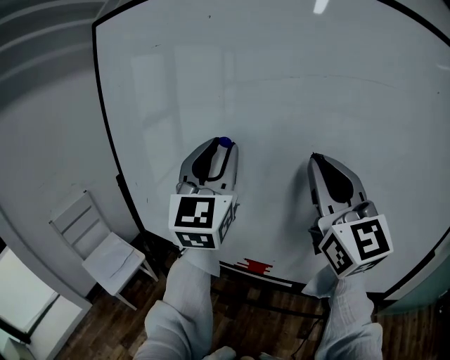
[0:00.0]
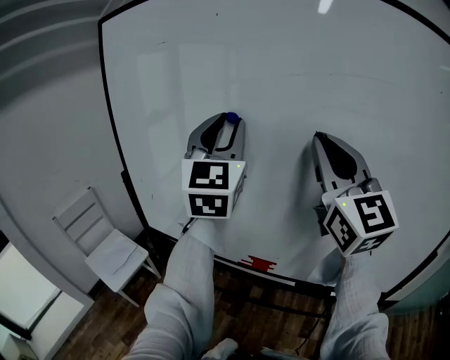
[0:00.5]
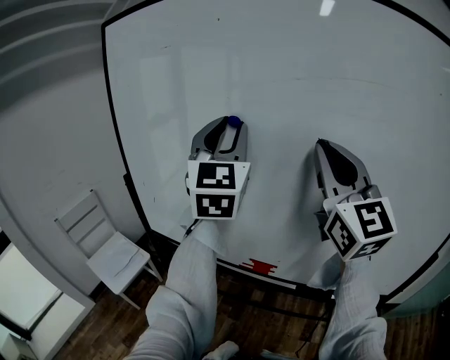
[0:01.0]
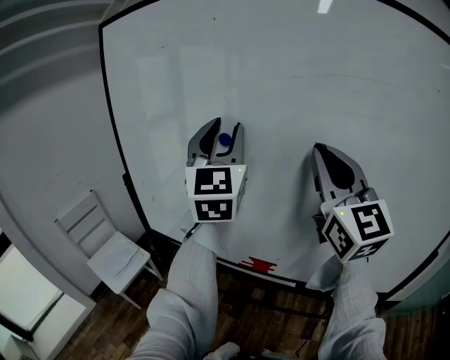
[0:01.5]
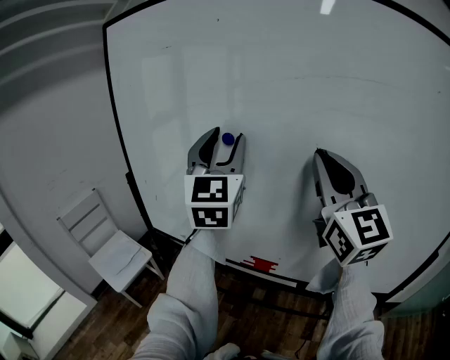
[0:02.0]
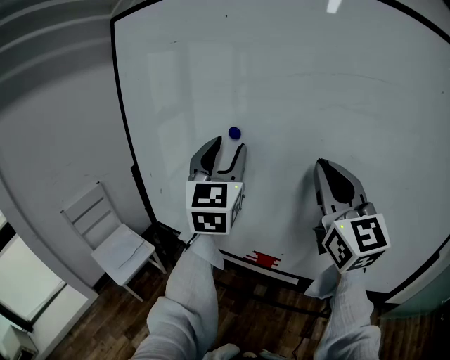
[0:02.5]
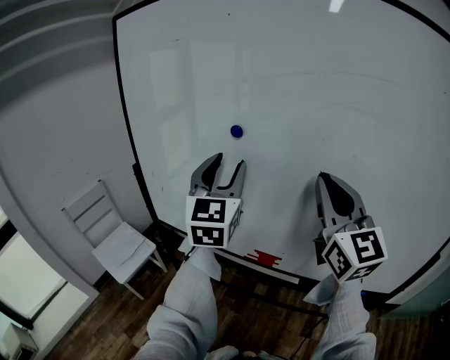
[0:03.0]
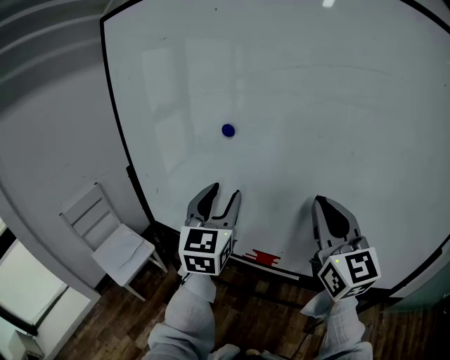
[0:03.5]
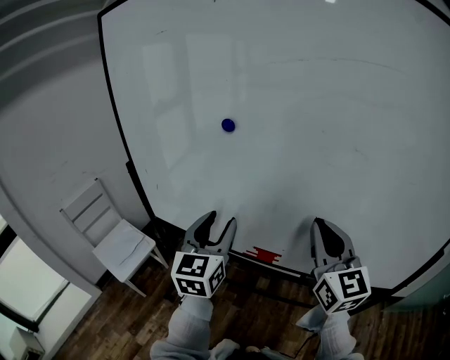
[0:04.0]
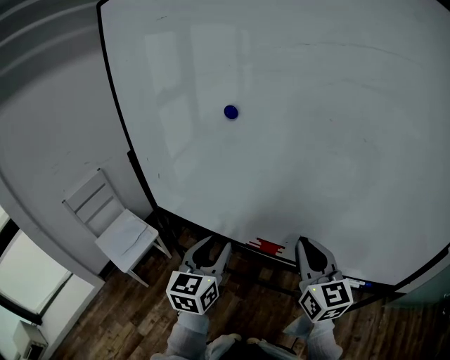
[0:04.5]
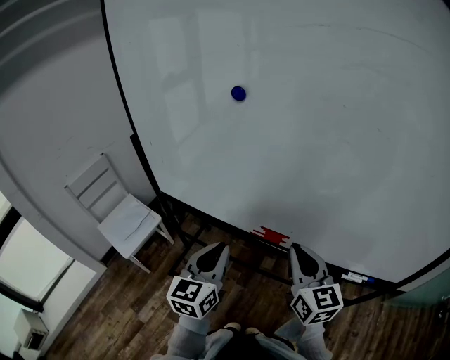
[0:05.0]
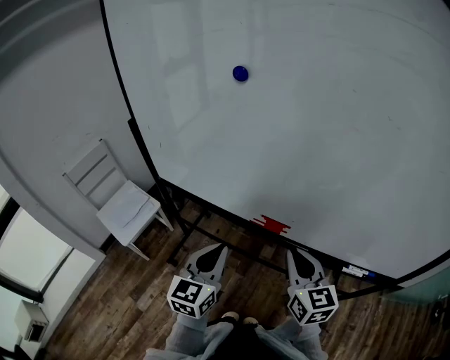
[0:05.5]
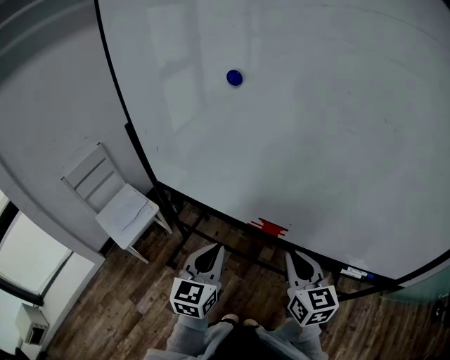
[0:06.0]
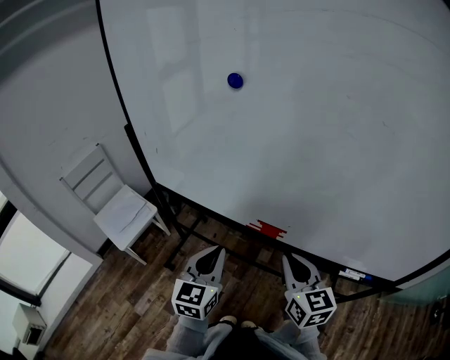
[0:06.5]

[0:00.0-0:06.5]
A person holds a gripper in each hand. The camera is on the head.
0:00.0 to 0:02.0: The grippers make only small movements.
0:02.0 to 0:04.5: The two grippers go roughly 30 cm downward. The left gripper turns by some 30 degrees. The right gripper changes its angle by about 30 degrees.
0:04.5 to 0:06.5: Both grippers move downward, approximately 10 cm. The left gripper closes up.

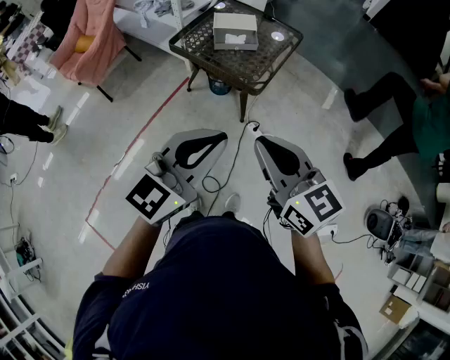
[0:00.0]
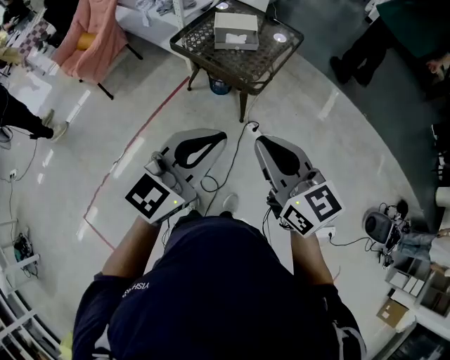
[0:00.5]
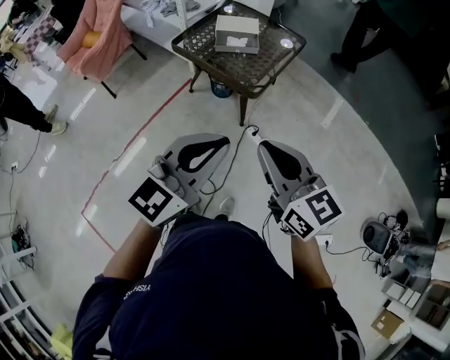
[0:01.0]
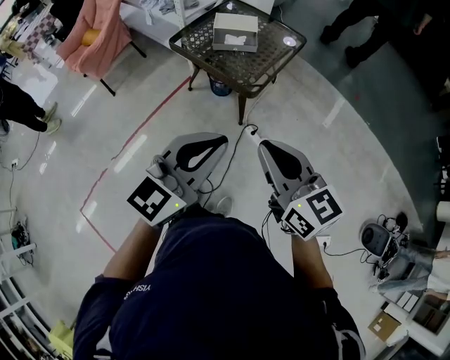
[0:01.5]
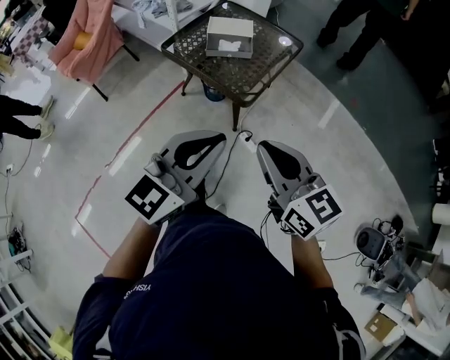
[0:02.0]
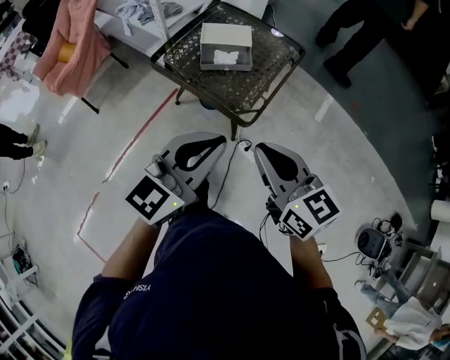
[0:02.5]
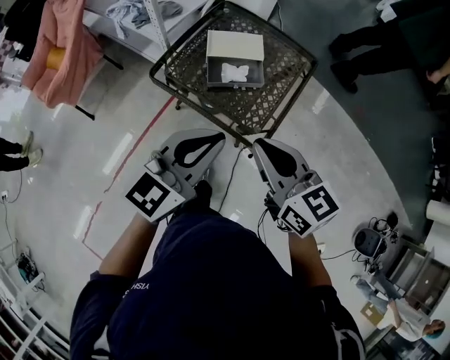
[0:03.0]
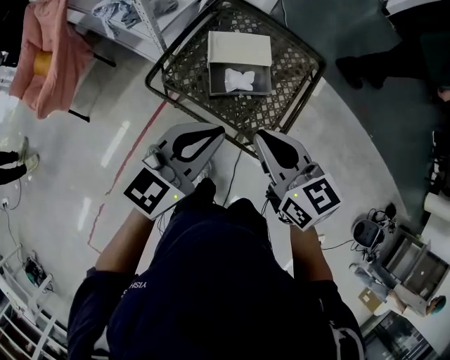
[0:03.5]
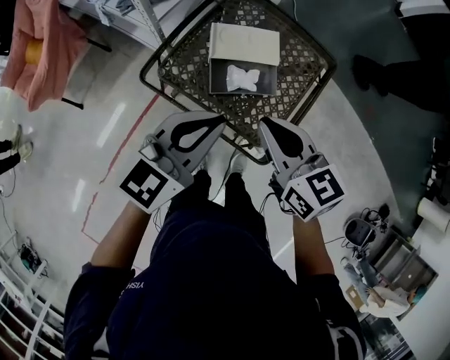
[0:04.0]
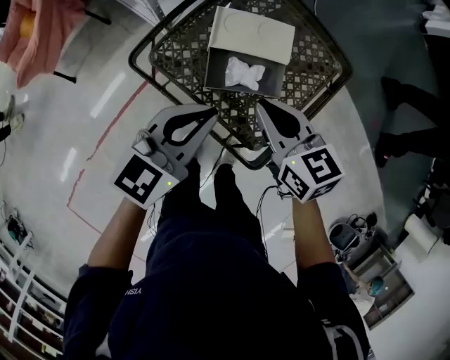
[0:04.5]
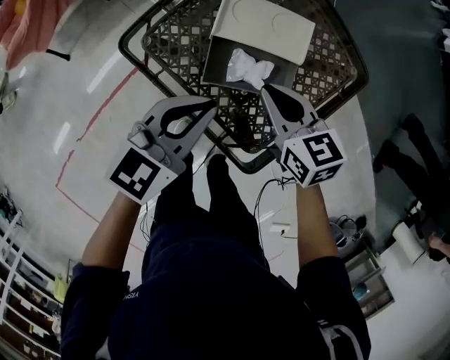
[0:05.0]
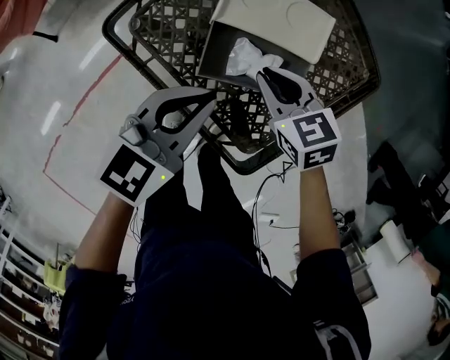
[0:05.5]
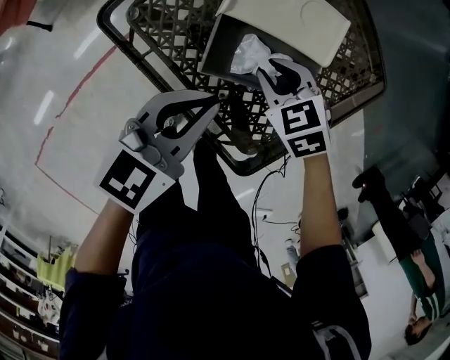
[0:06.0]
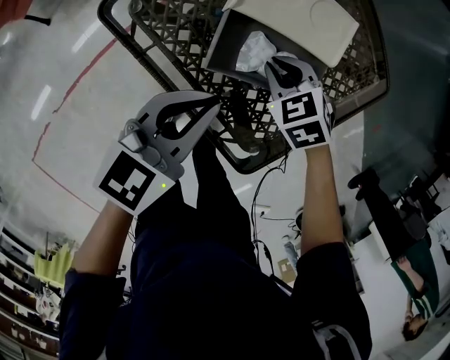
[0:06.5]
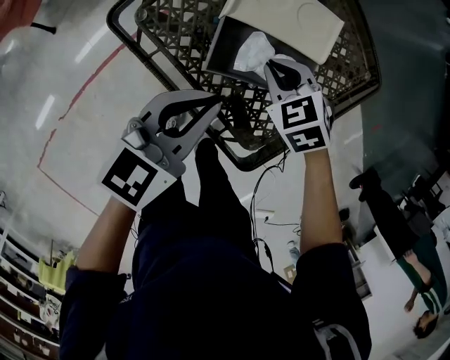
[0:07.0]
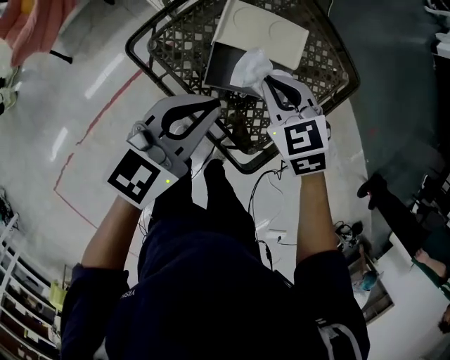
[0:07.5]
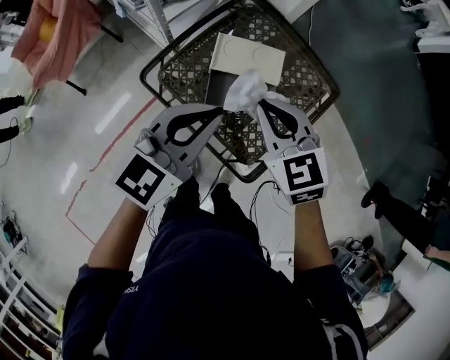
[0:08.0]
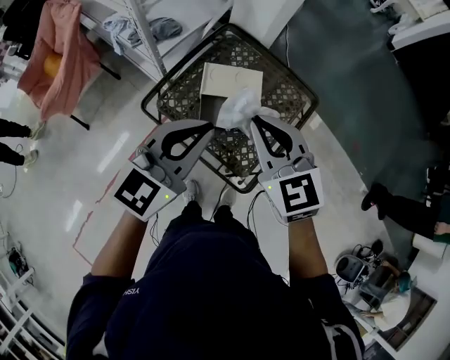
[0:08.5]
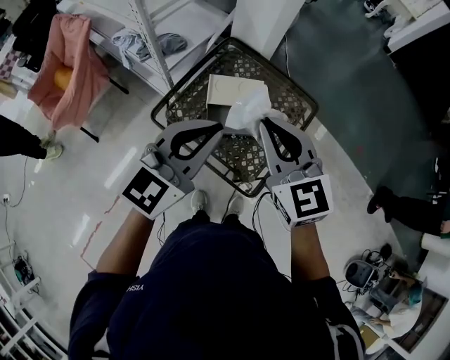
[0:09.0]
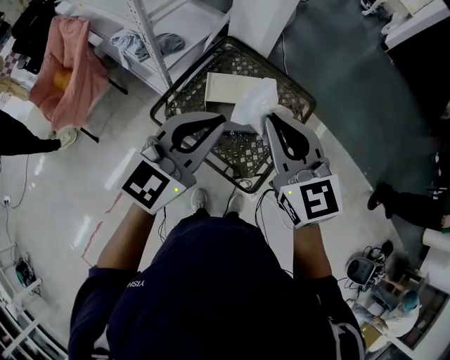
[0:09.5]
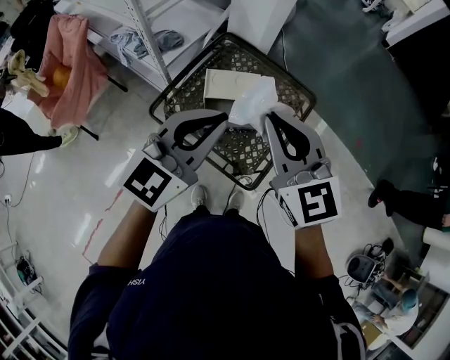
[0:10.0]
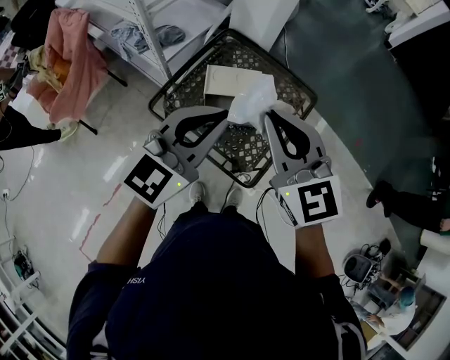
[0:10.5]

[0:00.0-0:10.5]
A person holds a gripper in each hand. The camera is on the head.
0:00.0 to 0:02.0: Both grippers travel together forward and to the right, about 10 cm.
0:02.0 to 0:04.0: Both grippers are carried forward, roughly 50 cm.
0:04.0 to 0:06.5: Both grippers travel together downward, roughly 35 cm. The right gripper angles its fingers downward, by about 40 degrees. The left gripper rotates some 20 degrees.
0:06.5 to 0:08.5: Both grippers travel together upward, some 40 cm. The right gripper points its fingers approximately 40 degrees further upward; the left gripper swivels roughly 30 degrees.
0:08.5 to 0:10.5: The right gripper heads upward, covering roughly 10 cm; the left gripper moves upward, about 5 cm.

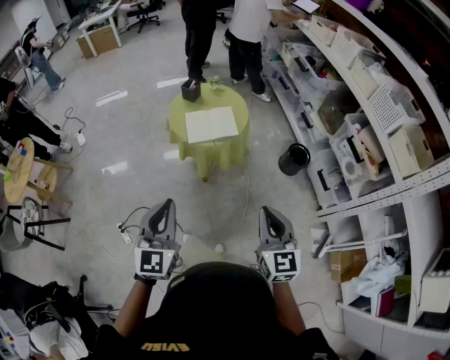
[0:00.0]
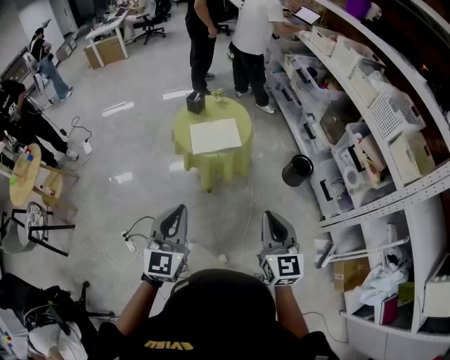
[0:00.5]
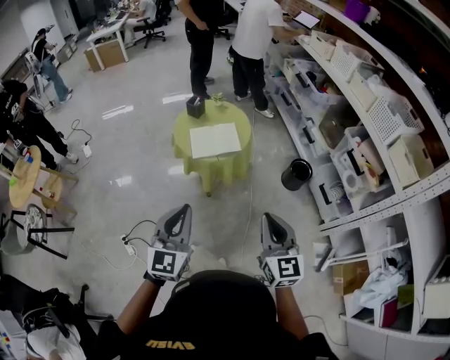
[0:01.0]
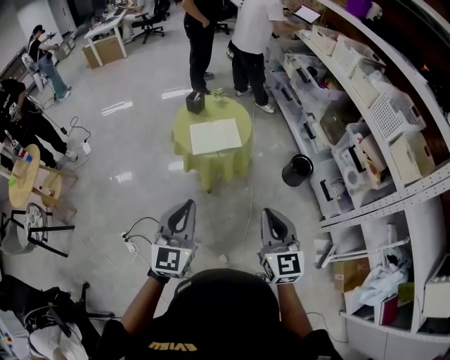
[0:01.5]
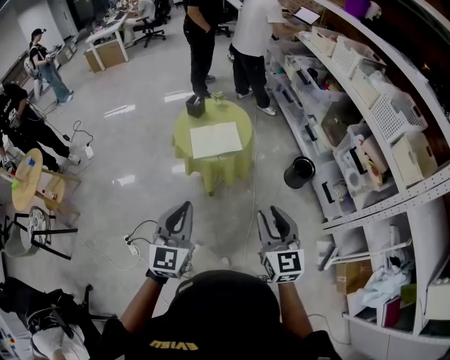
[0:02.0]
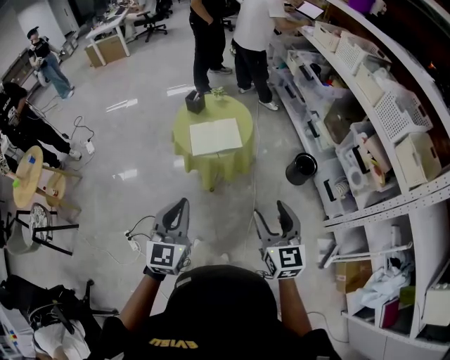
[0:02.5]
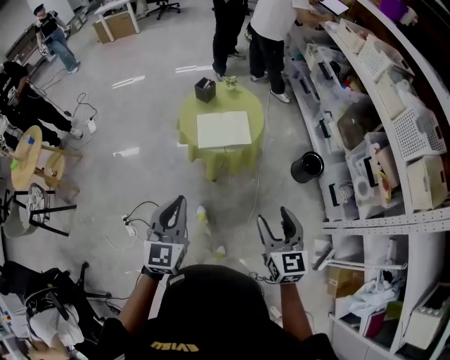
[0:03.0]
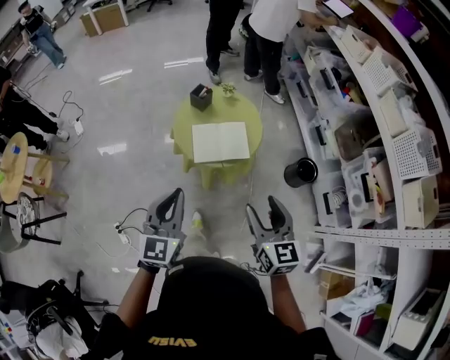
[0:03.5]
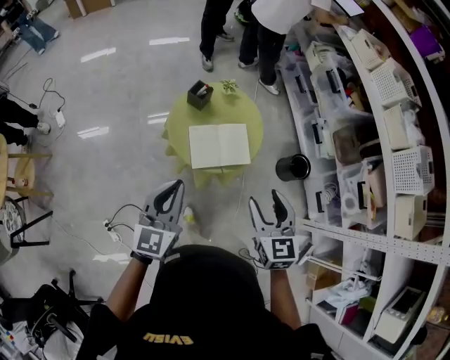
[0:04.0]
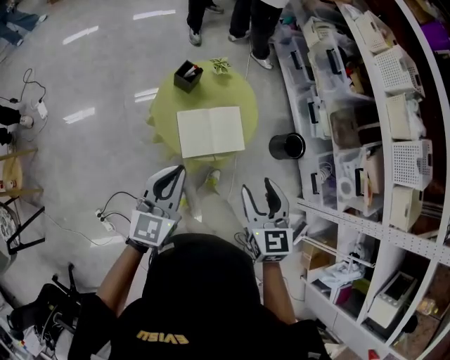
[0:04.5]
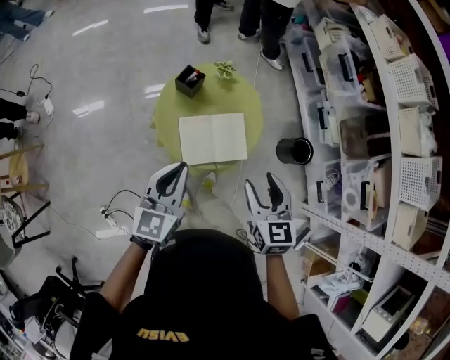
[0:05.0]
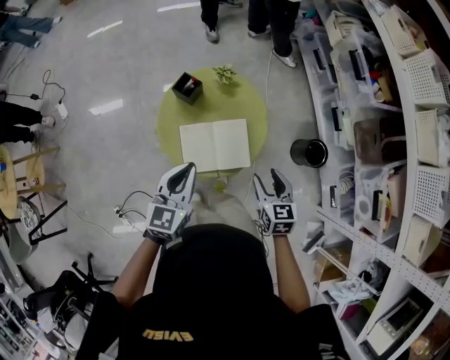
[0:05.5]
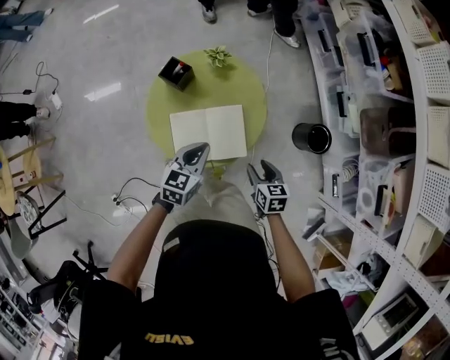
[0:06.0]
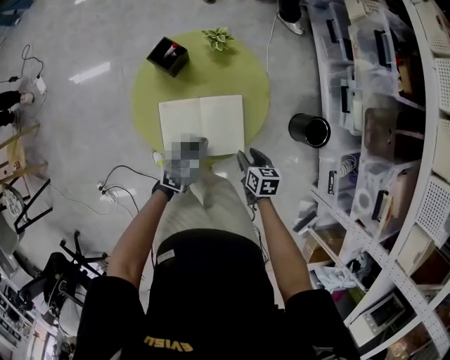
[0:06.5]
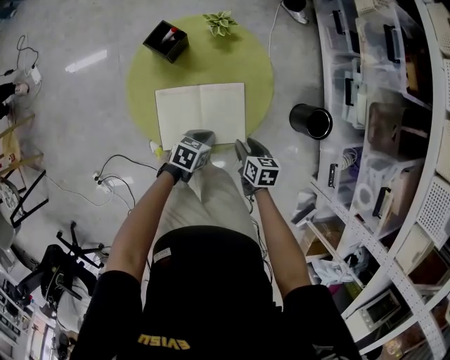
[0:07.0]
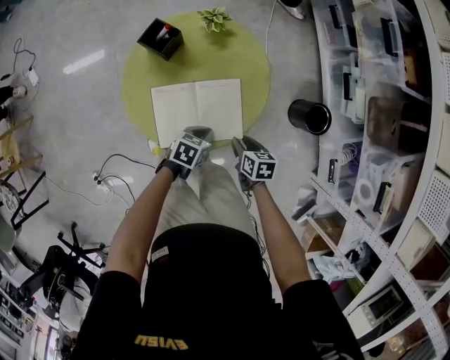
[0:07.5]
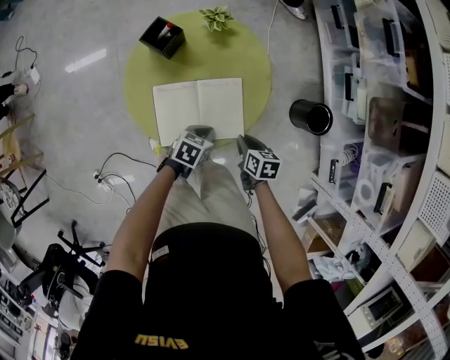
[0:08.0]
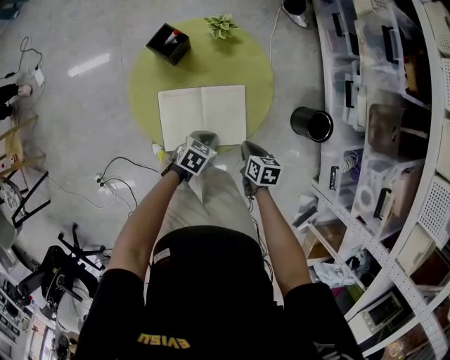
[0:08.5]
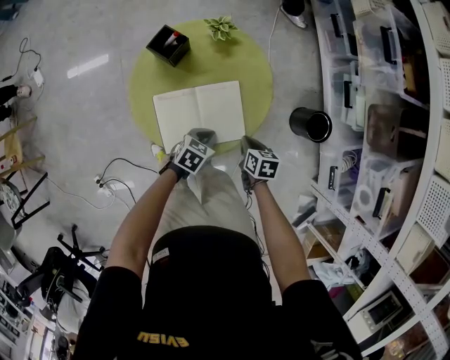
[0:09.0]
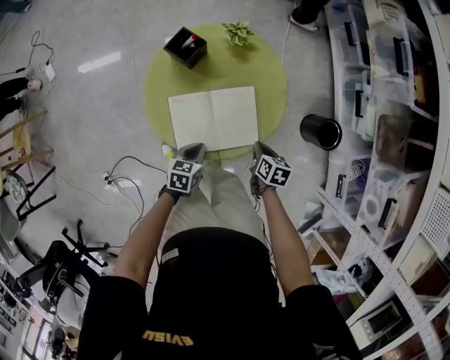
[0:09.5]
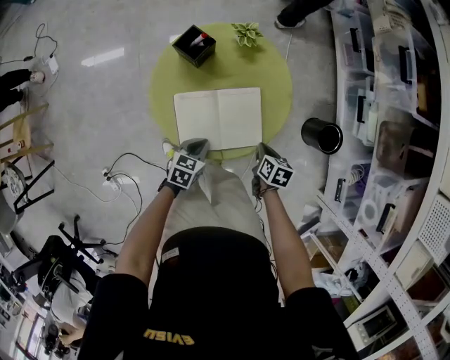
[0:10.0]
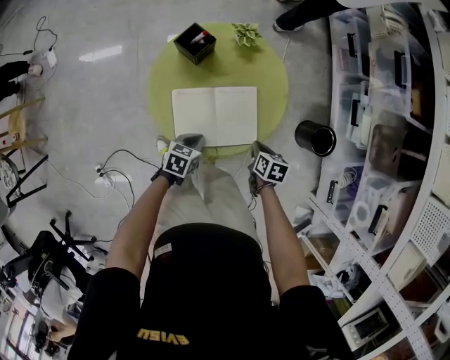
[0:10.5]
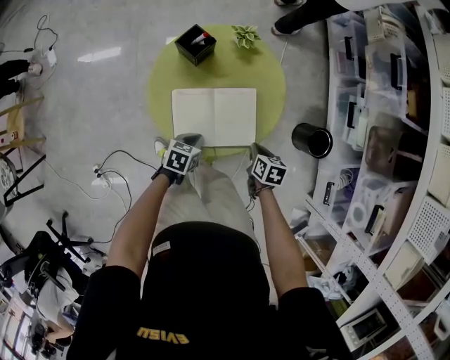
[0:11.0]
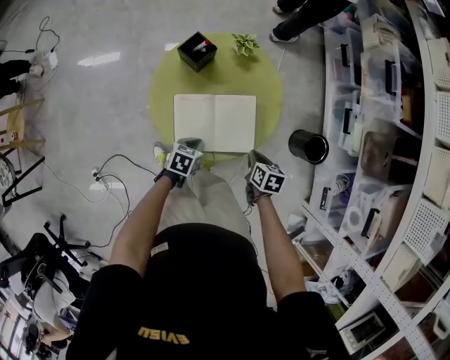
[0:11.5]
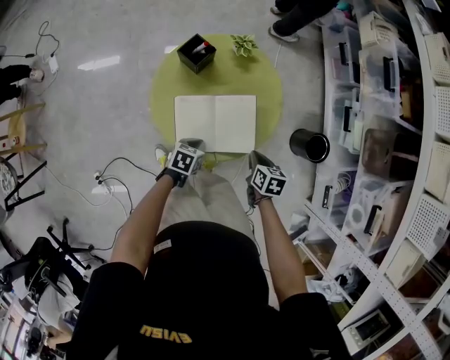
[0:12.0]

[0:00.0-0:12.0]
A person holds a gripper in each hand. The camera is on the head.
0:00.0 to 0:02.0: The right gripper opens; the left gripper changes place by some 5 cm.
0:02.0 to 0:04.0: The two grippers go roughly 30 cm forward. The right gripper opens.
0:04.0 to 0:06.0: The left gripper goes approximately 35 cm downward, forward and to the right, and changes its angle by roughly 30 degrees. Meanwhile the right gripper is displaced downward and forward by some 35 cm, and rotates approximately 30 degrees.
0:06.0 to 0:08.0: The left gripper is displaced downward by approximately 20 cm, and turns by some 30 degrees; the right gripper shifts some 15 cm downward, and closes.
0:08.0 to 0:10.0: The left gripper shifts roughly 10 cm to the left.
0:10.0 to 0:12.0: The right gripper heads upward, covering about 5 cm.
